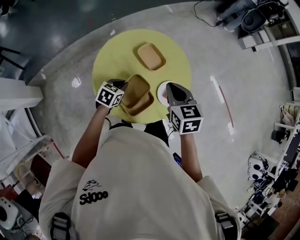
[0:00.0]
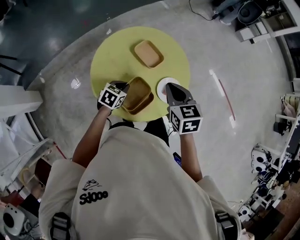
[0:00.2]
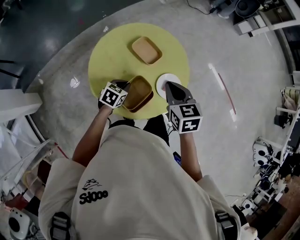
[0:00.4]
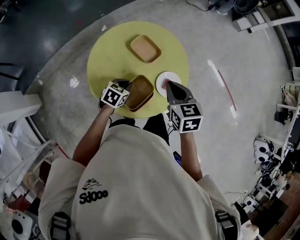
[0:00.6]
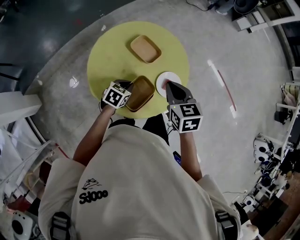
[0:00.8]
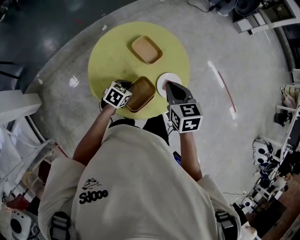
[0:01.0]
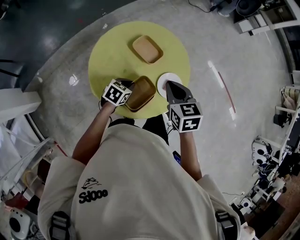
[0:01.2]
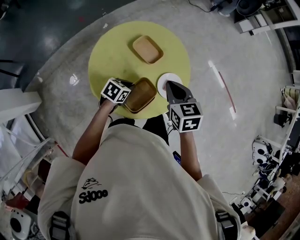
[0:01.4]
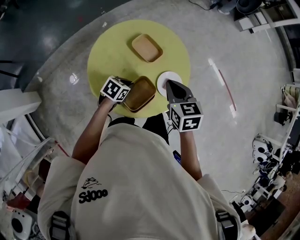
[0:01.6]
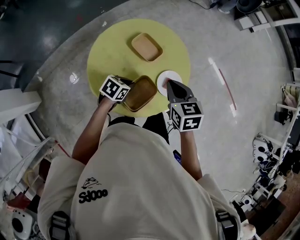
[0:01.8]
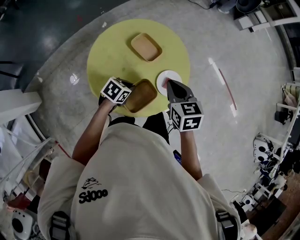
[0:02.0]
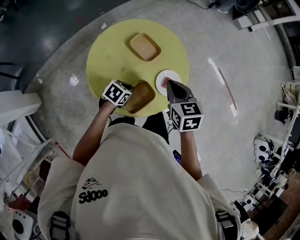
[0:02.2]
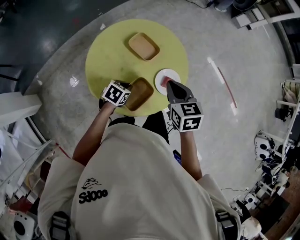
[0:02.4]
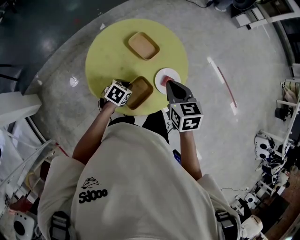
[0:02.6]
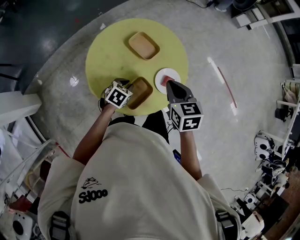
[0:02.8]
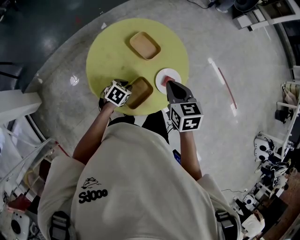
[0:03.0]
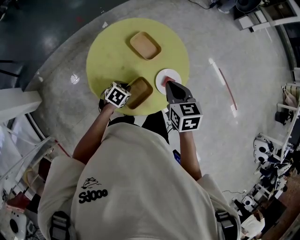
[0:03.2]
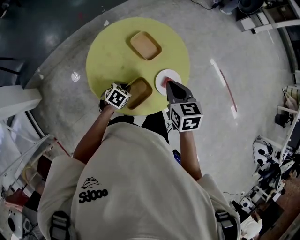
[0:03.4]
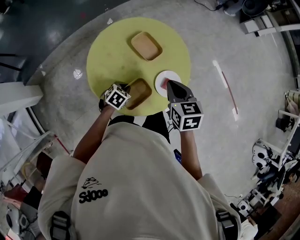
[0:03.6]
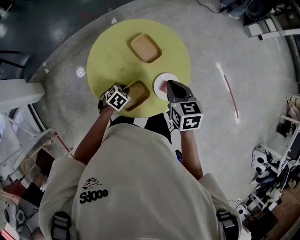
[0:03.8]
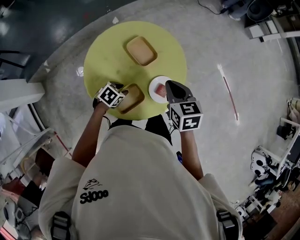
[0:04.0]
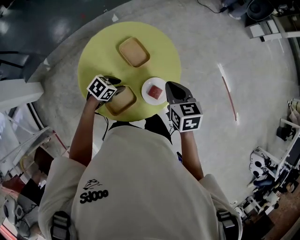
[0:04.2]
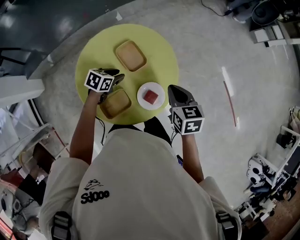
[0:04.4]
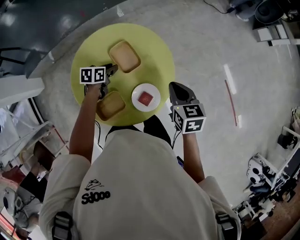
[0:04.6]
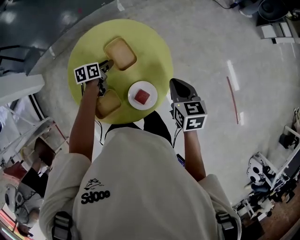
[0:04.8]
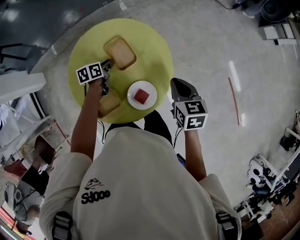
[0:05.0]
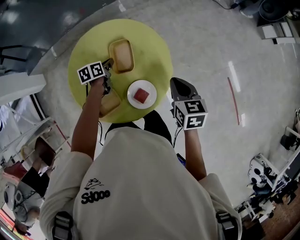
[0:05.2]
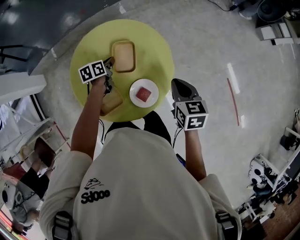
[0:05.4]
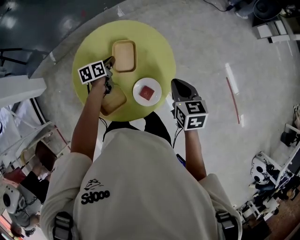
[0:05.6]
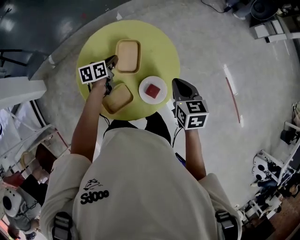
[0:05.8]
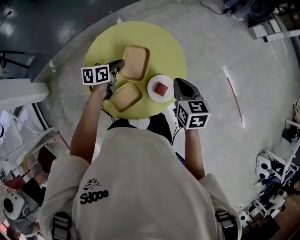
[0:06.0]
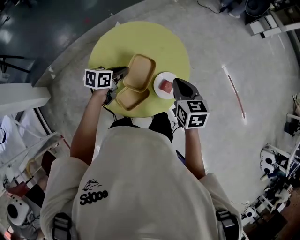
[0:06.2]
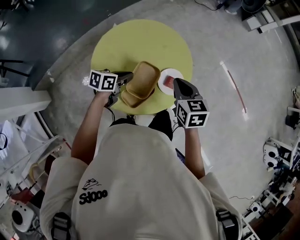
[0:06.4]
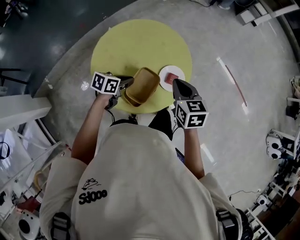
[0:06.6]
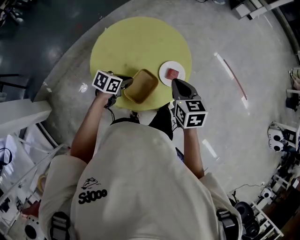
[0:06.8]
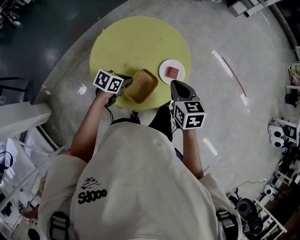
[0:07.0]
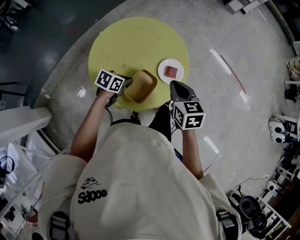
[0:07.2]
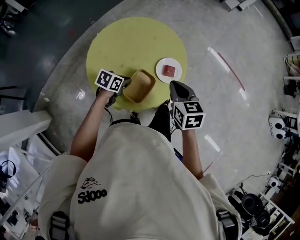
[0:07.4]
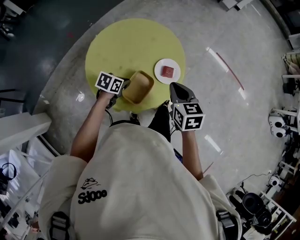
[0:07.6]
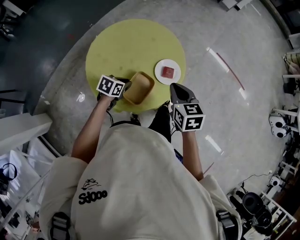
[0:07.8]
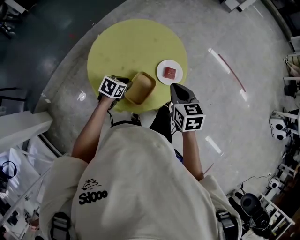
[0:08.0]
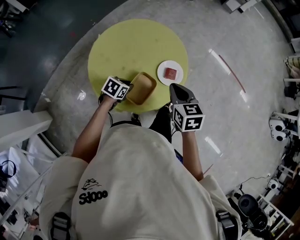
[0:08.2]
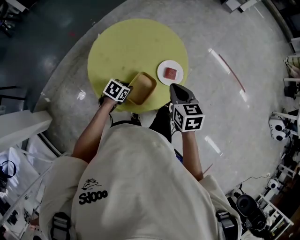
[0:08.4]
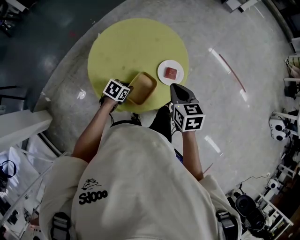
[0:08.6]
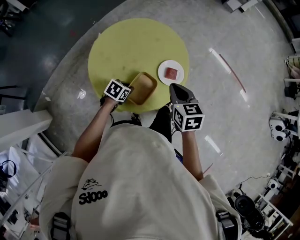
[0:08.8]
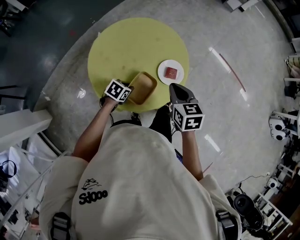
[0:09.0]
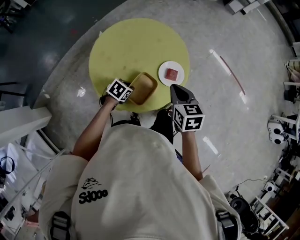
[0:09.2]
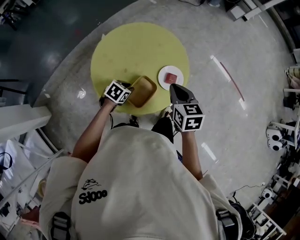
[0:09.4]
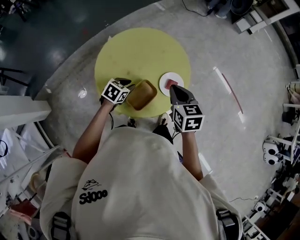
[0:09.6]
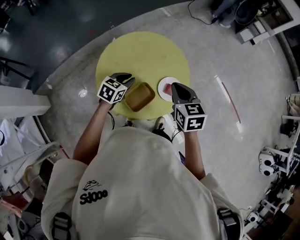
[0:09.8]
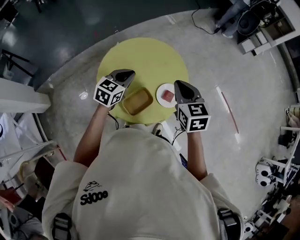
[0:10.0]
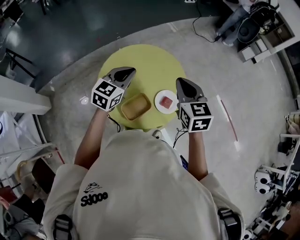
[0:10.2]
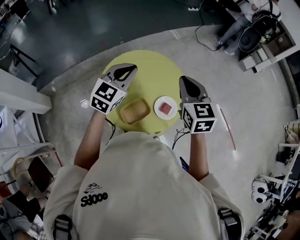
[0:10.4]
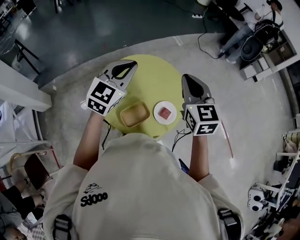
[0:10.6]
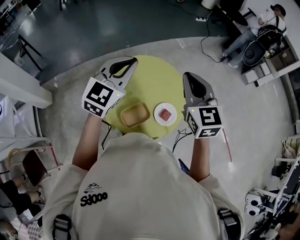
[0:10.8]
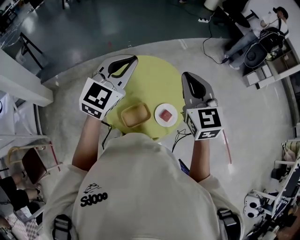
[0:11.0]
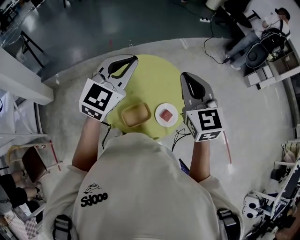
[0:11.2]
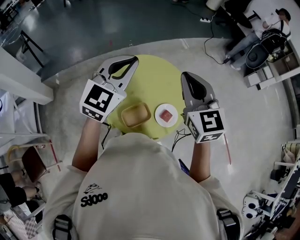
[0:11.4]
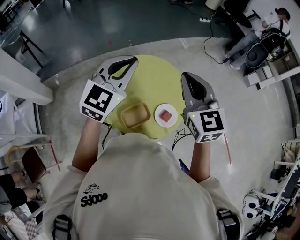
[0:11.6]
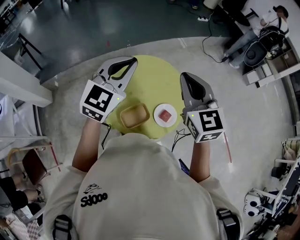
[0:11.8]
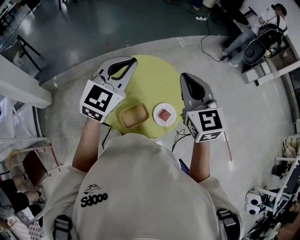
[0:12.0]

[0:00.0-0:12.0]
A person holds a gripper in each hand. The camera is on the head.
0:00.0 to 0:01.6: The left gripper travels to the right by approximately 5 cm.
0:01.6 to 0:03.0: The grippers make only small movements.
0:03.0 to 0:04.4: The left gripper travels forward by roughly 10 cm, and rotates approximately 20 degrees. Meanwhile the right gripper travels forward and to the right by about 15 cm.
0:04.4 to 0:06.0: The left gripper heads upward, covering some 5 cm, rotates some 30 degrees, and closes up.
0:06.0 to 0:07.6: The left gripper moves roughly 15 cm, and changes its angle by about 40 degrees. The right gripper changes place by about 15 cm.
0:07.6 to 0:09.0: The grippers stay close to where they were, moving slightly.
0:09.0 to 0:10.4: The left gripper heads upward, covering some 35 cm, and angles its fingers upward, by approximately 40 degrees; the right gripper moves upward, about 20 cm, and changes its angle by roughly 30 degrees.
0:10.4 to 0:12.0: The two grippers go approximately 10 cm upward.

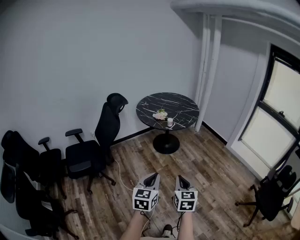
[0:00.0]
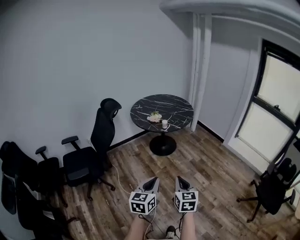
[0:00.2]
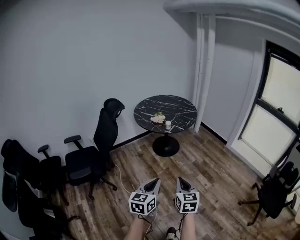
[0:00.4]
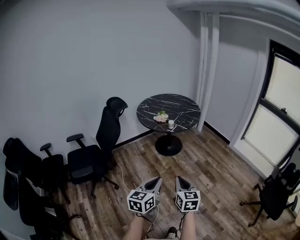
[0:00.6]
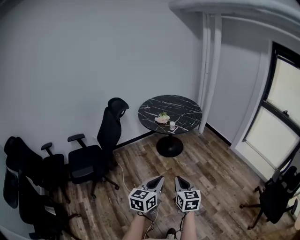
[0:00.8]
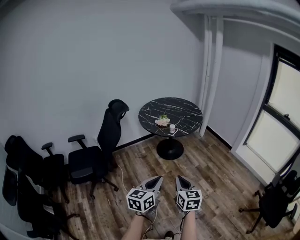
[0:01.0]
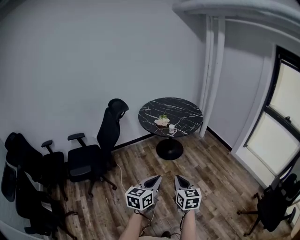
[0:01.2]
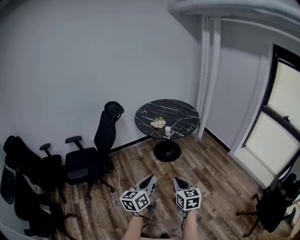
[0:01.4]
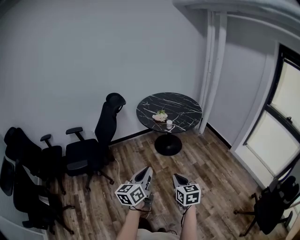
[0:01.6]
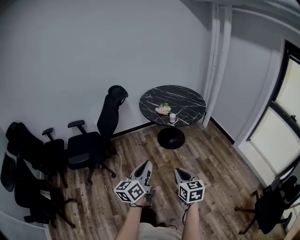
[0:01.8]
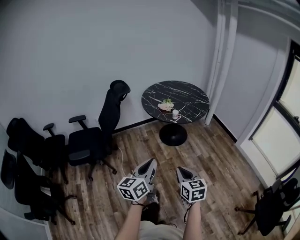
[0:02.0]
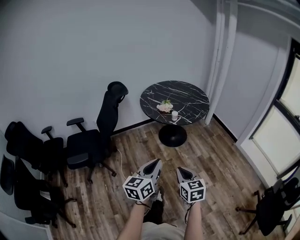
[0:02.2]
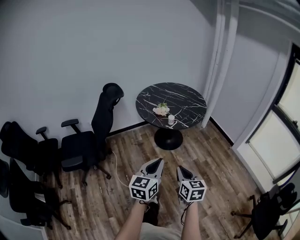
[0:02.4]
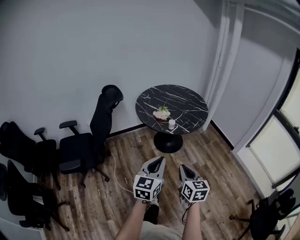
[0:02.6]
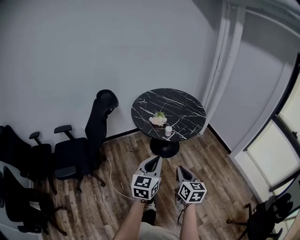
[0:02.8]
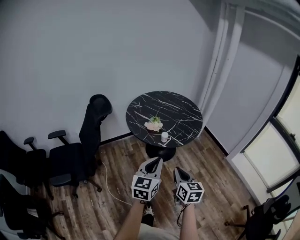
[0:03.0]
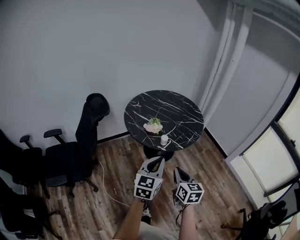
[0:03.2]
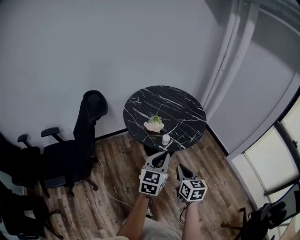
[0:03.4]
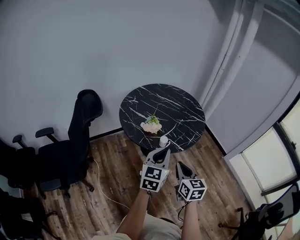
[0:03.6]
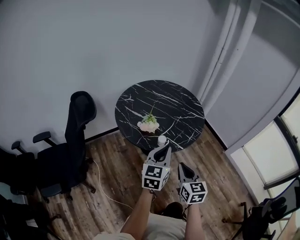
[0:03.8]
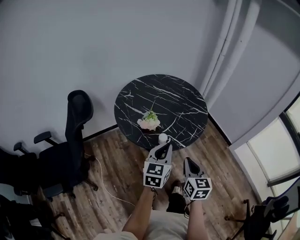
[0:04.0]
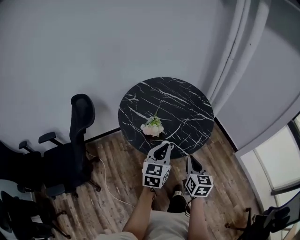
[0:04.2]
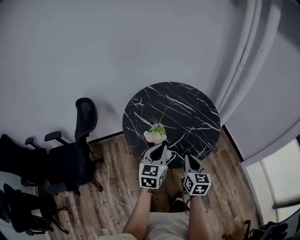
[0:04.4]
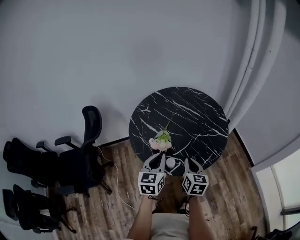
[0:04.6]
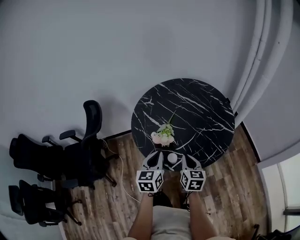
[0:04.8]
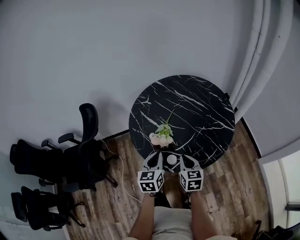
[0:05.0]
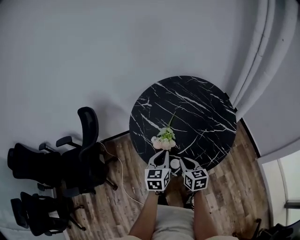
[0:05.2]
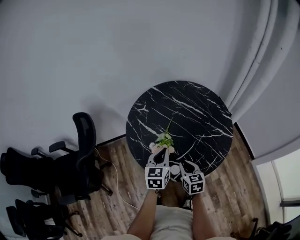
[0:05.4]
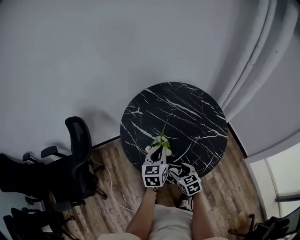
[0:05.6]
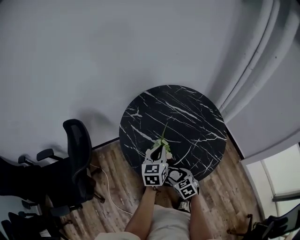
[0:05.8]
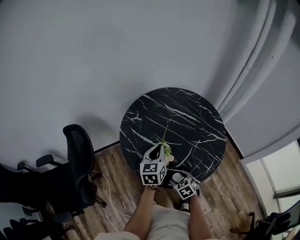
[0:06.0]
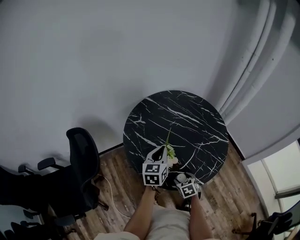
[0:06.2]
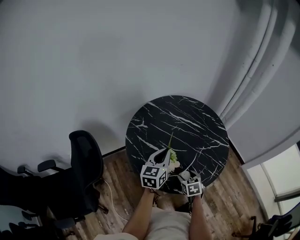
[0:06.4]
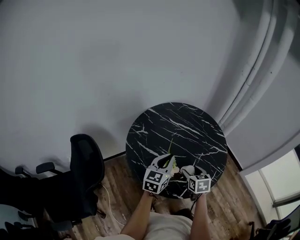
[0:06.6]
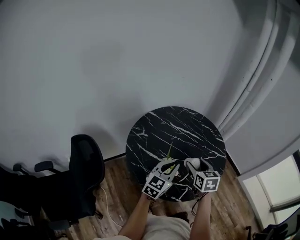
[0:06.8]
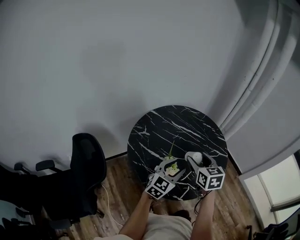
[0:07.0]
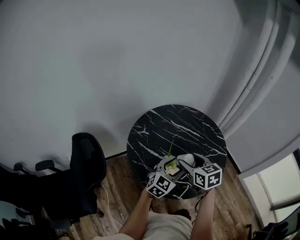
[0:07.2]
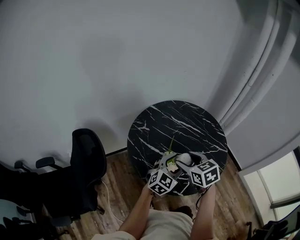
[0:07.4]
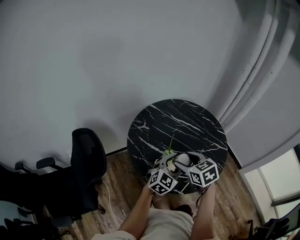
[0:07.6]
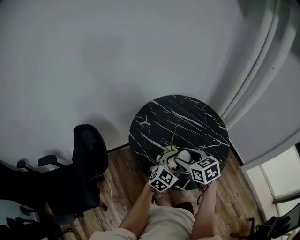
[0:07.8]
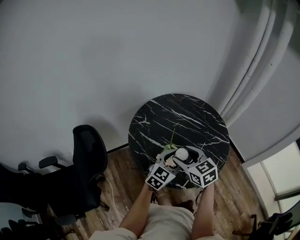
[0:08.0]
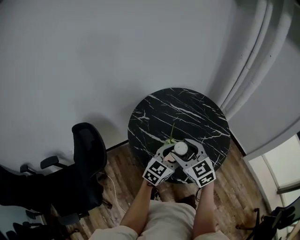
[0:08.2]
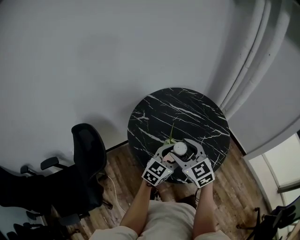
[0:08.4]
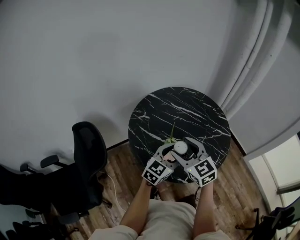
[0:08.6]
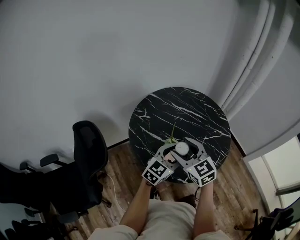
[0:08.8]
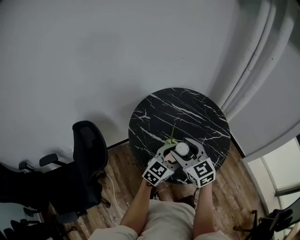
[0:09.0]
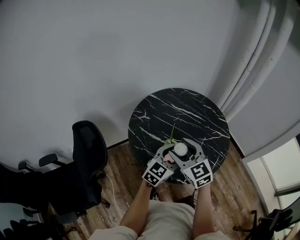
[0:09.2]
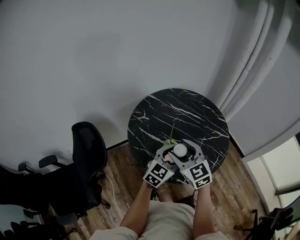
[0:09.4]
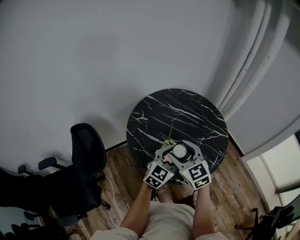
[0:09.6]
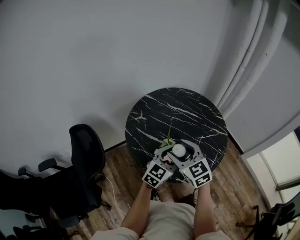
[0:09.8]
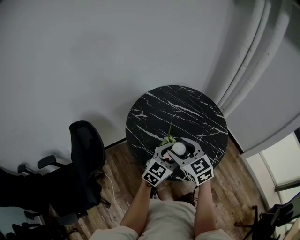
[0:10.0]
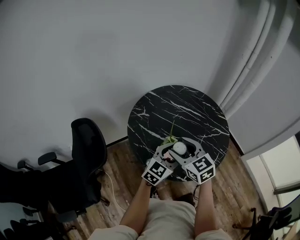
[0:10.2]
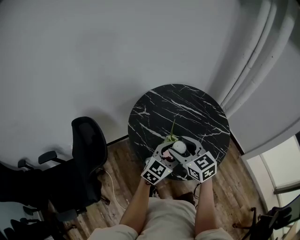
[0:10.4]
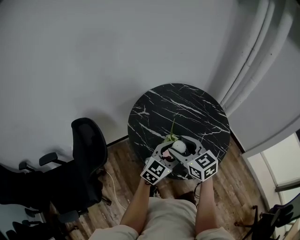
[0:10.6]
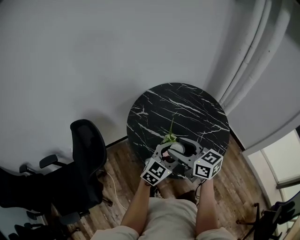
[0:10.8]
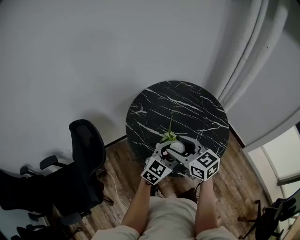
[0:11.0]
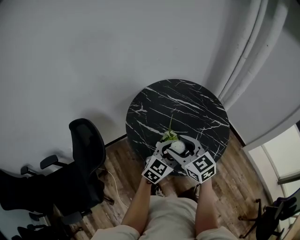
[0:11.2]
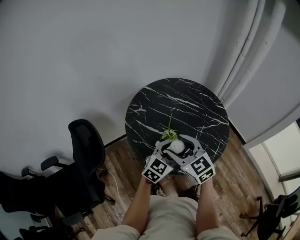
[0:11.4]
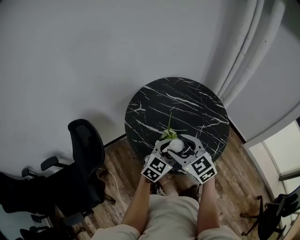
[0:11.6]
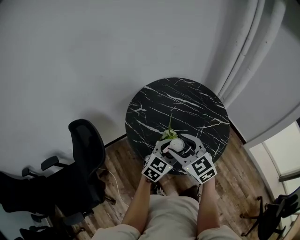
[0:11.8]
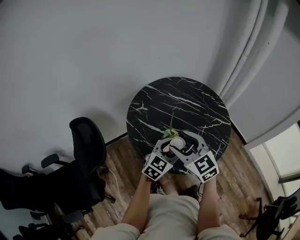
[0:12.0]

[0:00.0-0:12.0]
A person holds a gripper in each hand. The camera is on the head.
0:00.0 to 0:01.6: The grippers both shift forward by roughly 10 cm. The left gripper rotates about 30 degrees.
0:01.6 to 0:03.0: The two grippers go approximately 30 cm forward. The left gripper rotates some 30 degrees.
0:03.0 to 0:04.4: The grippers both shift forward by approximately 35 cm.
0:04.4 to 0:06.0: The right gripper shifts about 25 cm downward, to the left and forward, tilts its fingers some 40 degrees downward, and opens its fingers; the left gripper moves forward, about 20 cm.
0:06.0 to 0:07.6: The left gripper travels backward and to the right by roughly 10 cm, turns by about 50 degrees, and opens up, while the right gripper travels upward by about 25 cm.
0:07.6 to 0:09.0: The right gripper swivels approximately 30 degrees.
0:09.0 to 0:10.4: The grippers make only small movements.
0:10.4 to 0:12.0: The grippers move only a little.
